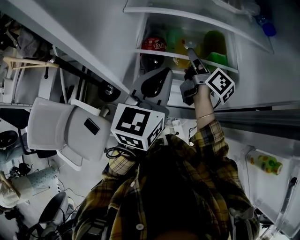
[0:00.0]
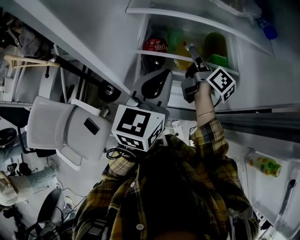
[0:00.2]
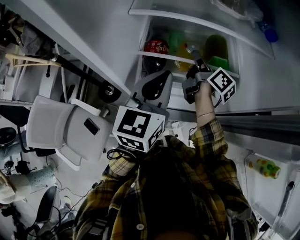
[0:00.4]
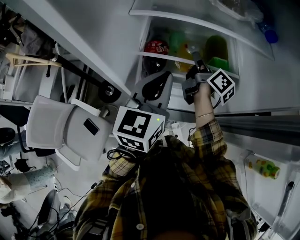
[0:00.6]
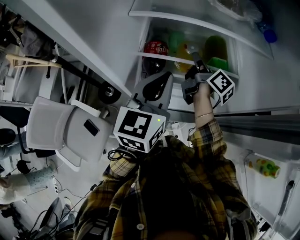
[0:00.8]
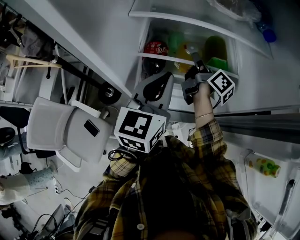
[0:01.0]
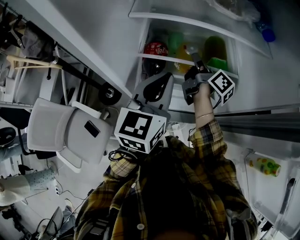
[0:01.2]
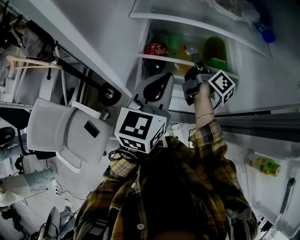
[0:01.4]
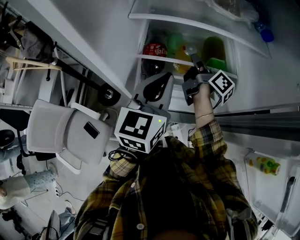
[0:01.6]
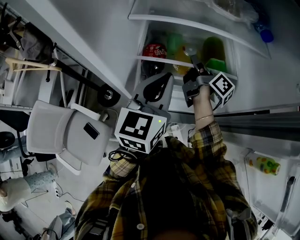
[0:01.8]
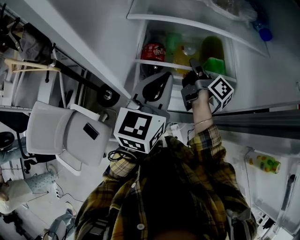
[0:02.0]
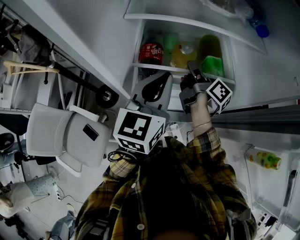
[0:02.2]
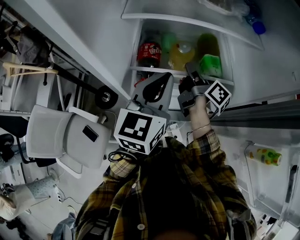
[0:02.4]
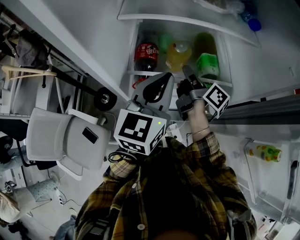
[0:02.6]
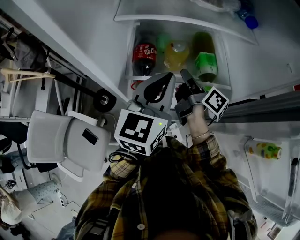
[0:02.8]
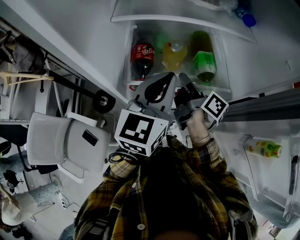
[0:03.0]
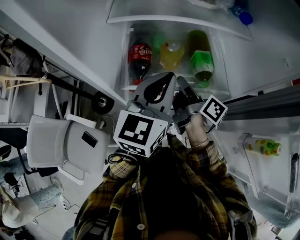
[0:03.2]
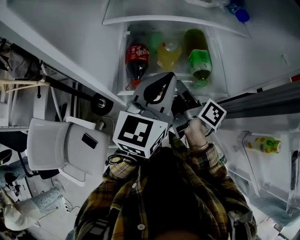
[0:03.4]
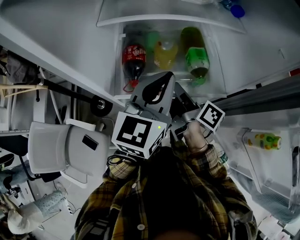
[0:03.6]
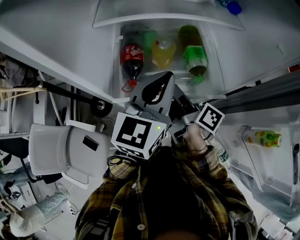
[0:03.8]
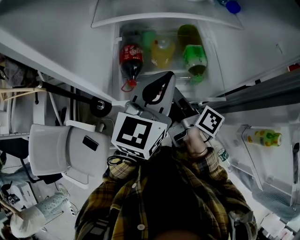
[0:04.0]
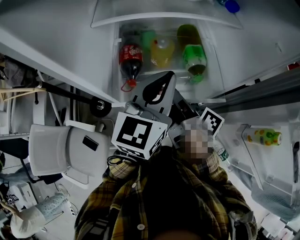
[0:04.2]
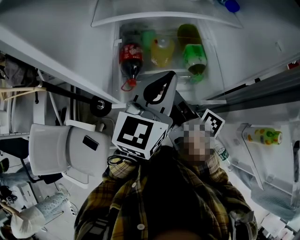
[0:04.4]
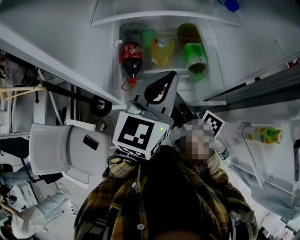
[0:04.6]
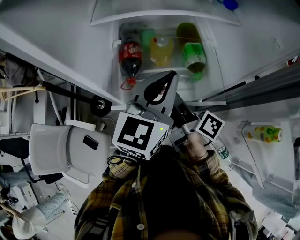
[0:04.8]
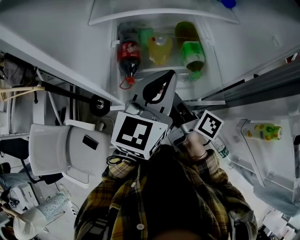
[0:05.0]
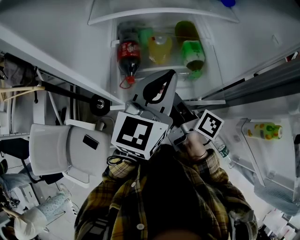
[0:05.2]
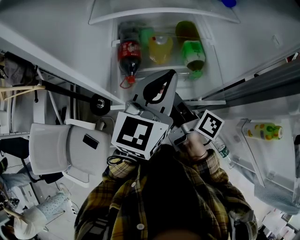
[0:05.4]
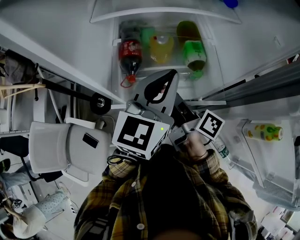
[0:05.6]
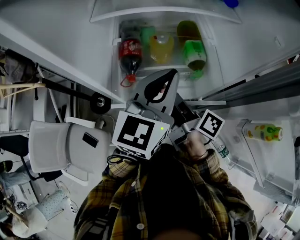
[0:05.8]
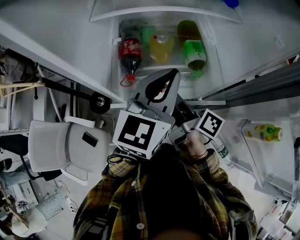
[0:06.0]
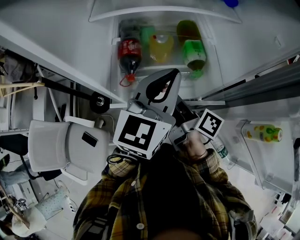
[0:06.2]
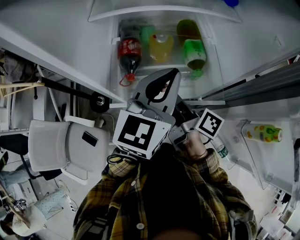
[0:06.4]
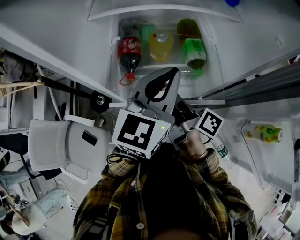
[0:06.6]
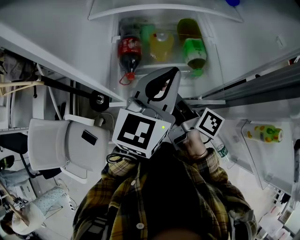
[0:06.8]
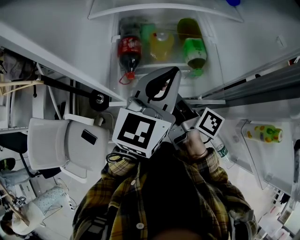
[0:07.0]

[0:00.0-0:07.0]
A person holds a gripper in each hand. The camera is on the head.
0:00.0 to 0:01.4: The right gripper closes.
0:01.4 to 0:02.8: The right gripper is displaced backward by roughly 10 cm.
0:02.8 to 0:04.2: The right gripper is displaced backward by roughly 10 cm.
0:04.2 to 0:05.6: There are only small adjustments of the grippers.
0:05.6 to 0:07.0: Both grippers stay about where they are.

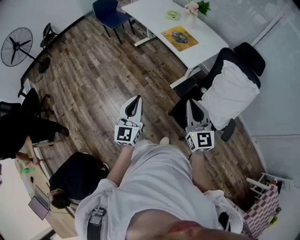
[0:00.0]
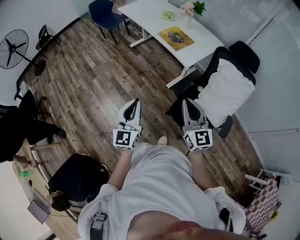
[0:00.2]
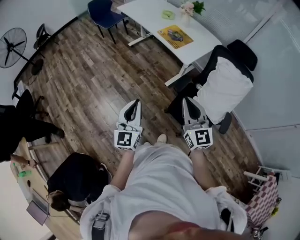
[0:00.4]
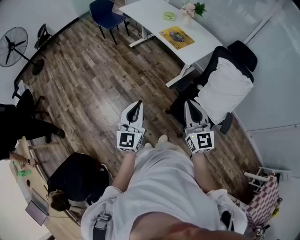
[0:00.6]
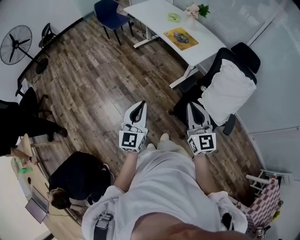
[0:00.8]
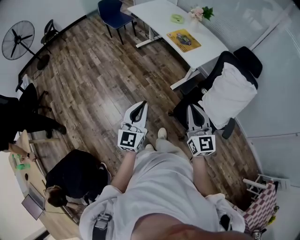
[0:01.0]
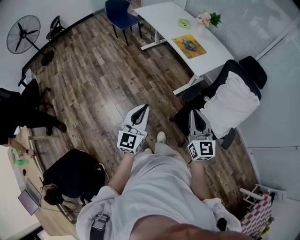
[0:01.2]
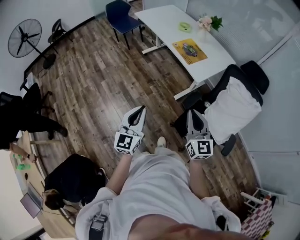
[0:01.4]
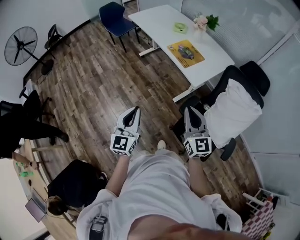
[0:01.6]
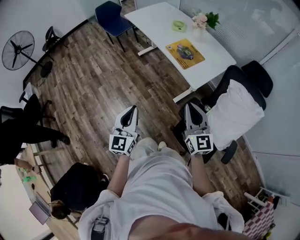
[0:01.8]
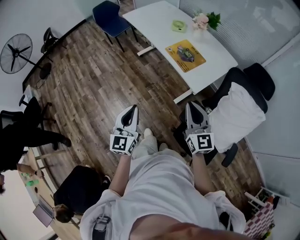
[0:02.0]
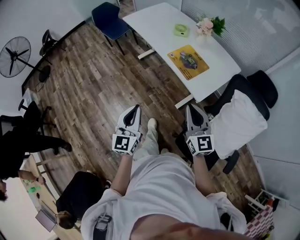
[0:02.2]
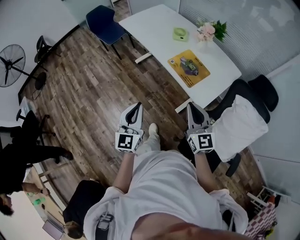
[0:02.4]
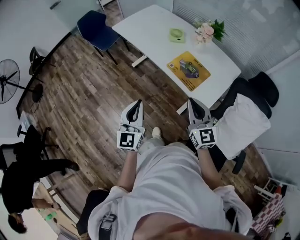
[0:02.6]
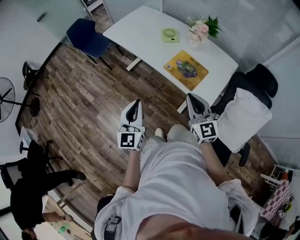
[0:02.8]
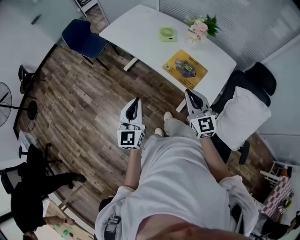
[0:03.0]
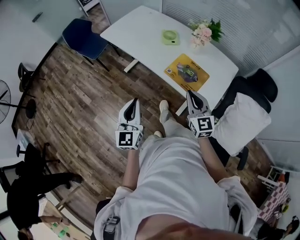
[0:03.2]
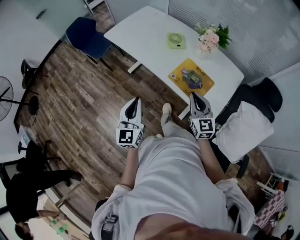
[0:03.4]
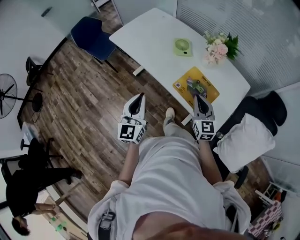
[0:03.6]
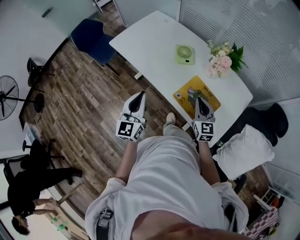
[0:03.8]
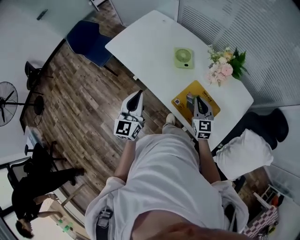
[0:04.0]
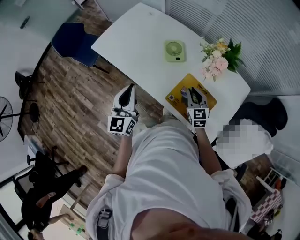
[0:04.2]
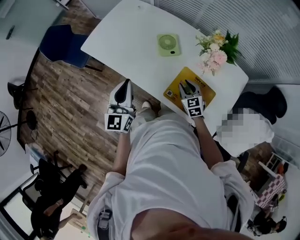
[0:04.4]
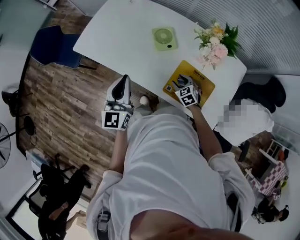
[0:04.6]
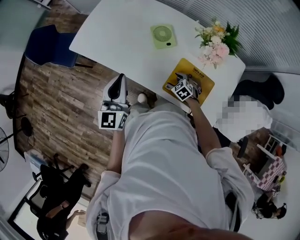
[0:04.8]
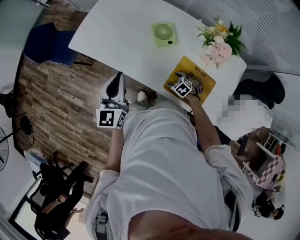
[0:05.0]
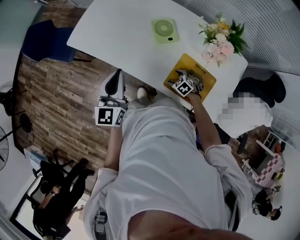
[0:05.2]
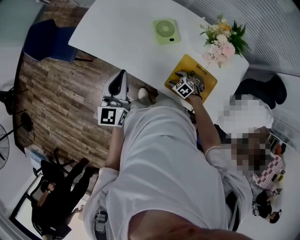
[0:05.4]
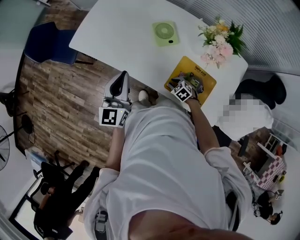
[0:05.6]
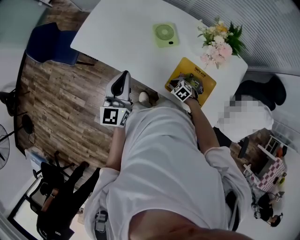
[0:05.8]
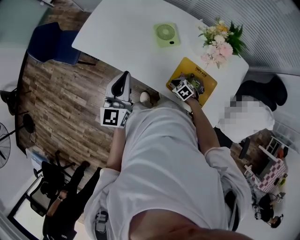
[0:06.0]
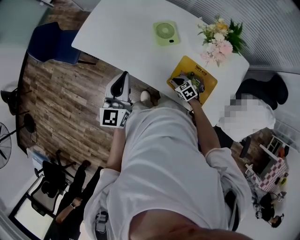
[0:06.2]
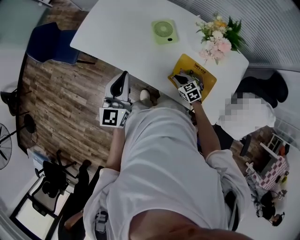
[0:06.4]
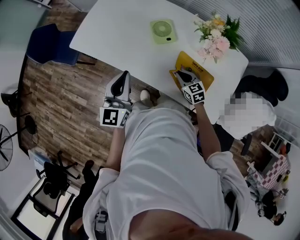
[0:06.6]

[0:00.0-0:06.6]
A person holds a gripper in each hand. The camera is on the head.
0:00.0 to 0:01.6: The left gripper goes roughly 5 cm forward, while the right gripper goes some 10 cm forward.
0:01.6 to 0:03.2: The pair of grippers is taken forward, about 40 cm.
0:03.2 to 0:05.0: The right gripper shifts some 50 cm downward and forward, tilts its fingers roughly 60 degrees downward, and opens its fingers. Meanwhile the left gripper shifts approximately 40 cm forward.
0:05.0 to 0:06.6: The right gripper is displaced upward by approximately 10 cm, changes its angle by approximately 40 degrees, and closes its fingers.

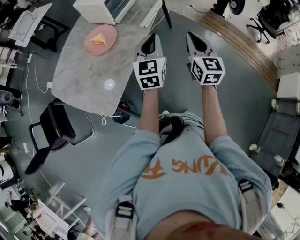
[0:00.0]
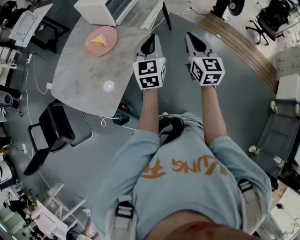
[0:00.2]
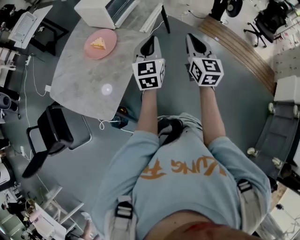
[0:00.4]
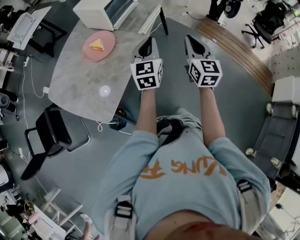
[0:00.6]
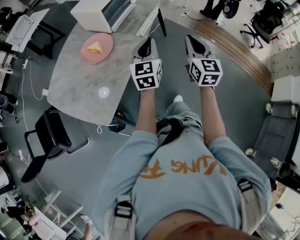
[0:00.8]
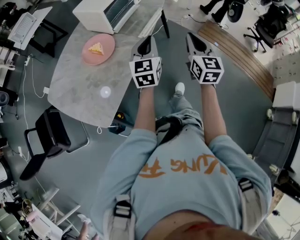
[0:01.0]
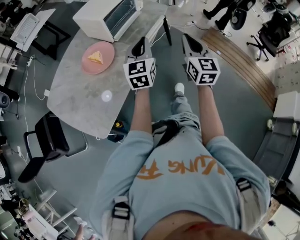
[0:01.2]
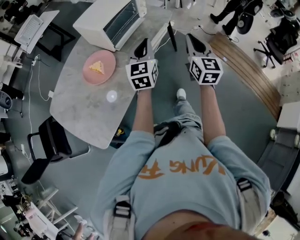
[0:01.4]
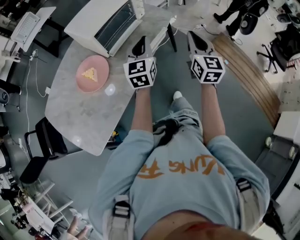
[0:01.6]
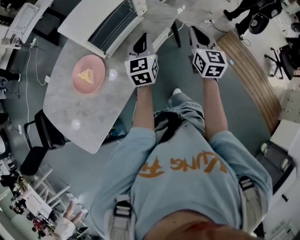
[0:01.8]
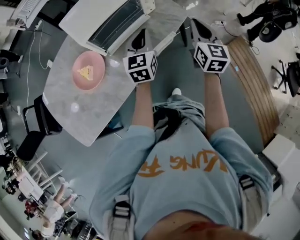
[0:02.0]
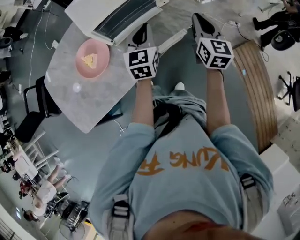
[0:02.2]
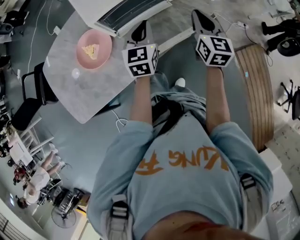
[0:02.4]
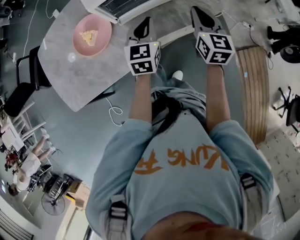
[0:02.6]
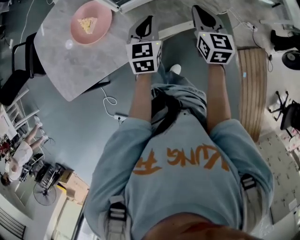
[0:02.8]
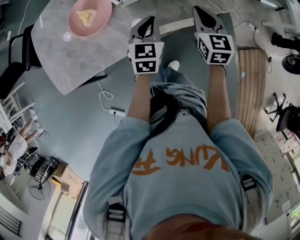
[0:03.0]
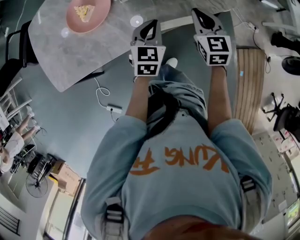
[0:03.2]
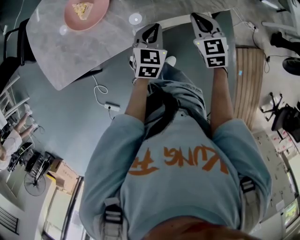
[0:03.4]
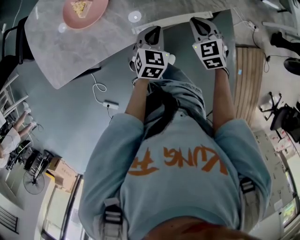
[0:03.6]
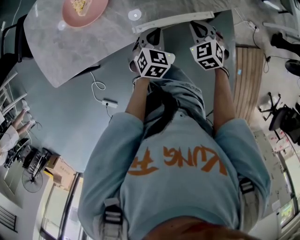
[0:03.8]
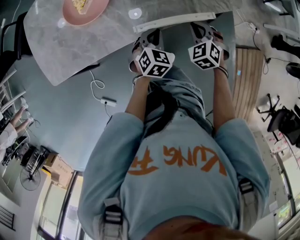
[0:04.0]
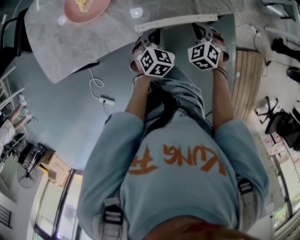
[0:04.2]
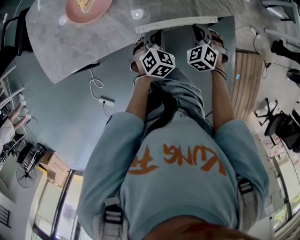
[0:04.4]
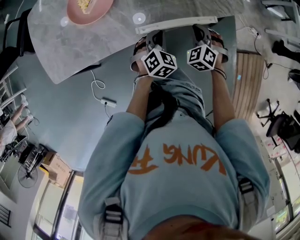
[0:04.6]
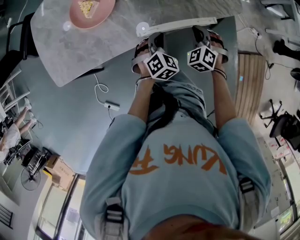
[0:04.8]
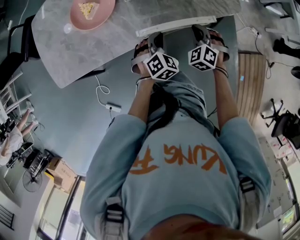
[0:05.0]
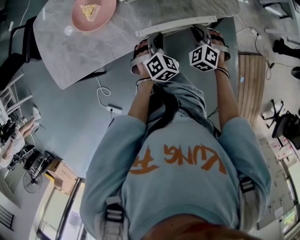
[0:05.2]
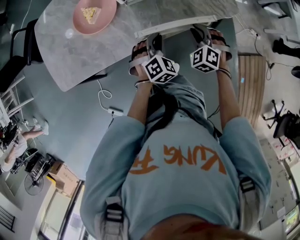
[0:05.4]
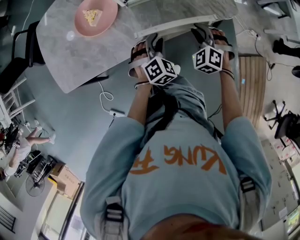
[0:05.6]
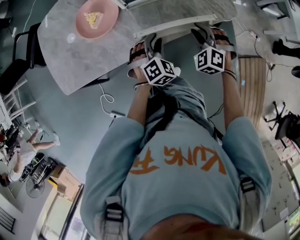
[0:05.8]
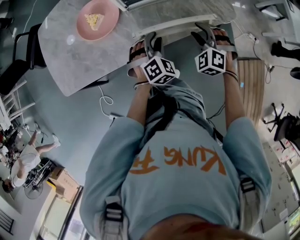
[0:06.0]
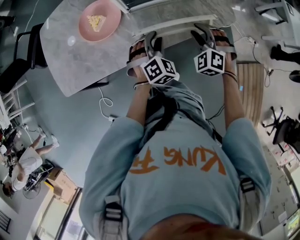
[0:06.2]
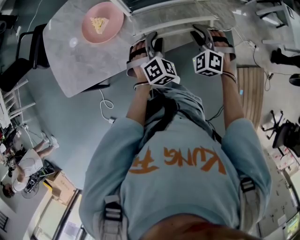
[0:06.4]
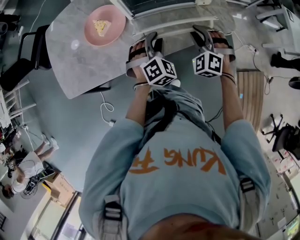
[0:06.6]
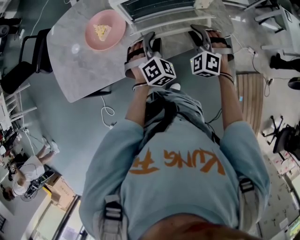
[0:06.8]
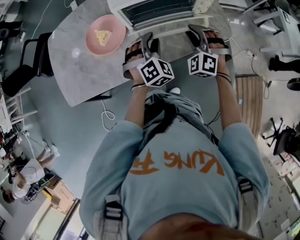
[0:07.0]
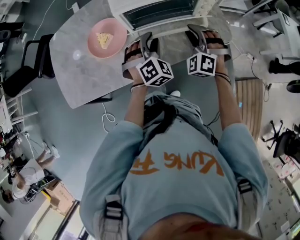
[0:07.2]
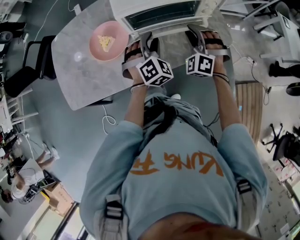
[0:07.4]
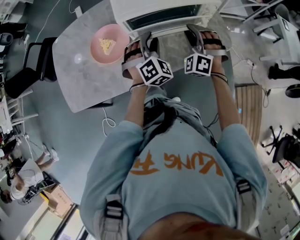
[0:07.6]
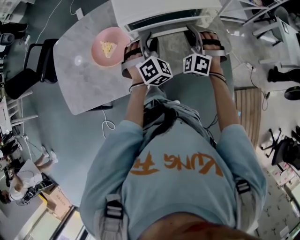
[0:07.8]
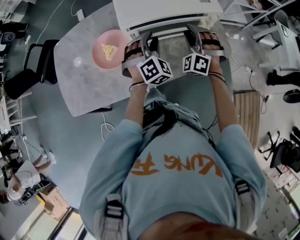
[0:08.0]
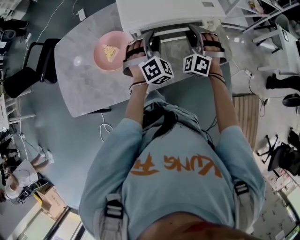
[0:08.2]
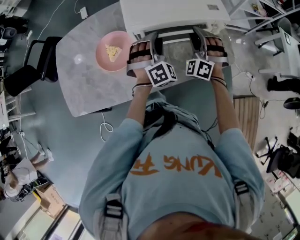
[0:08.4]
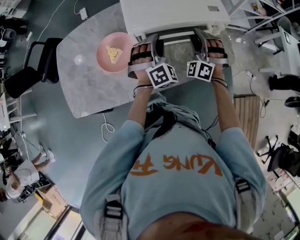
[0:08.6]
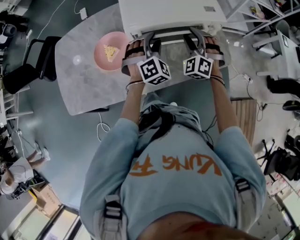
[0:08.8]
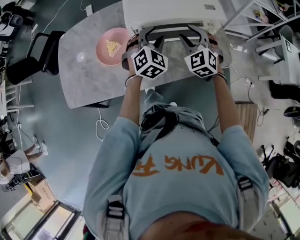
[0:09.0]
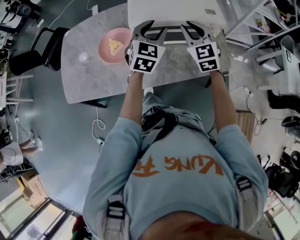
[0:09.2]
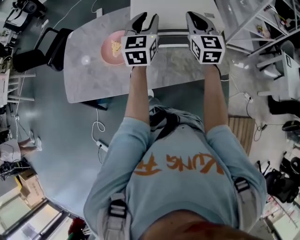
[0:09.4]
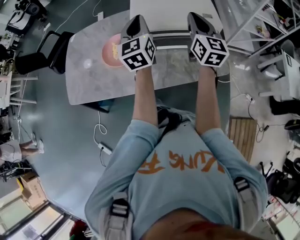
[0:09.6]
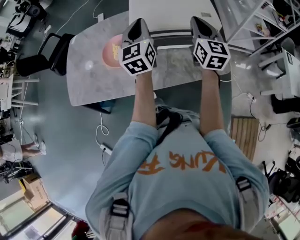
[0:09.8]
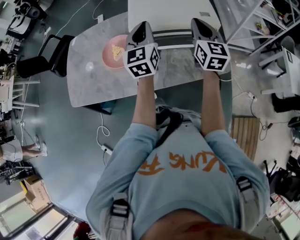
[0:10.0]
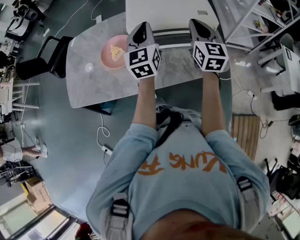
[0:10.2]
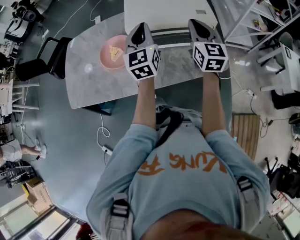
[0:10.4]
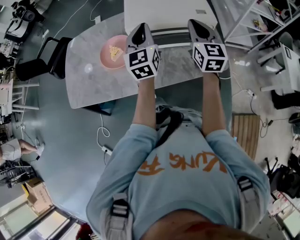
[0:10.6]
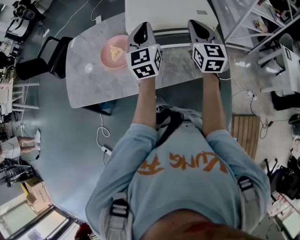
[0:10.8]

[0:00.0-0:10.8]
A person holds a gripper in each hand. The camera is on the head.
0:00.0 to 0:01.6: The grippers both shift forward by some 30 cm.
0:01.6 to 0:03.0: The right gripper ends up roughly 30 cm from where it was, and changes its angle by roughly 40 degrees, while the left gripper travels downward by roughly 15 cm, and rotates approximately 40 degrees.
0:03.0 to 0:04.6: The right gripper travels downward by approximately 15 cm, and rotates around the line of its fingers by about 50 degrees, counterclockwise from behind, while the left gripper shifts approximately 15 cm downward and backward, and changes its angle by about 40 degrees.
0:04.6 to 0:06.2: Both grippers move upward, about 10 cm. The right gripper opens its fingers, while the left gripper opens its fingers.
0:06.2 to 0:07.8: Both grippers travel together forward and upward, some 15 cm. The right gripper swivels approximately 20 degrees.
0:07.8 to 0:09.2: The grippers both shift upward by some 10 cm. The left gripper turns by some 40 degrees, while the right gripper twists roughly 40 degrees clockwise, seen from behind.
0:09.2 to 0:10.8: Both grippers travel together upward, about 5 cm. The left gripper turns by approximately 30 degrees, and closes its fingers, while the right gripper swivels approximately 30 degrees.
